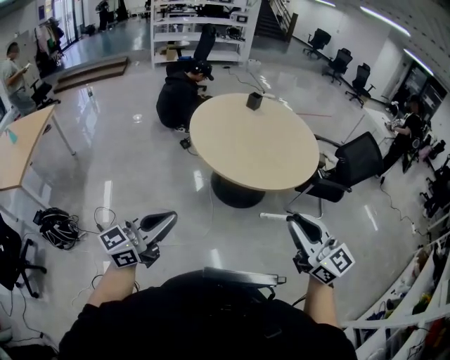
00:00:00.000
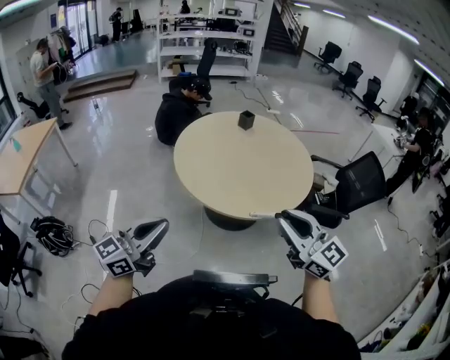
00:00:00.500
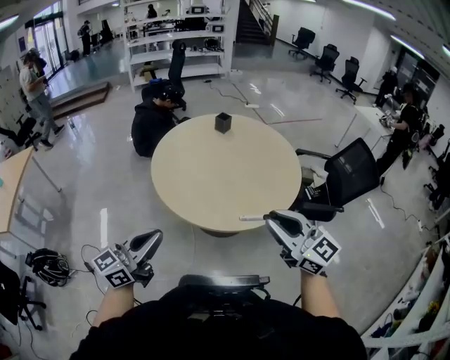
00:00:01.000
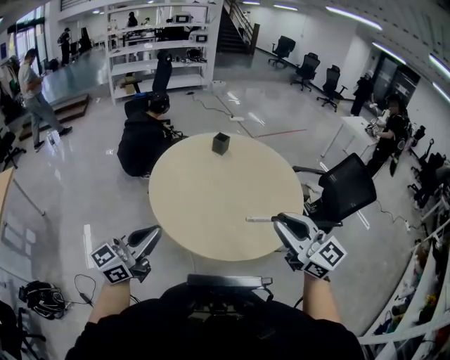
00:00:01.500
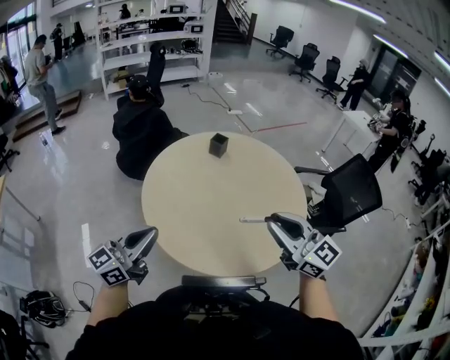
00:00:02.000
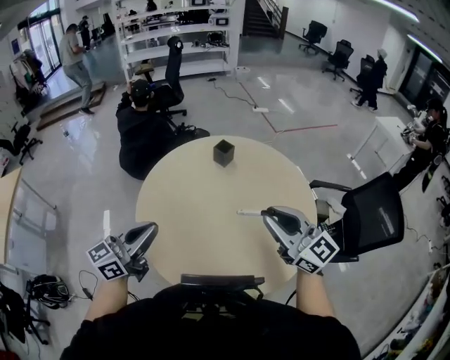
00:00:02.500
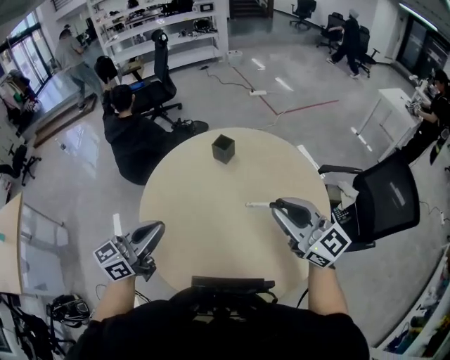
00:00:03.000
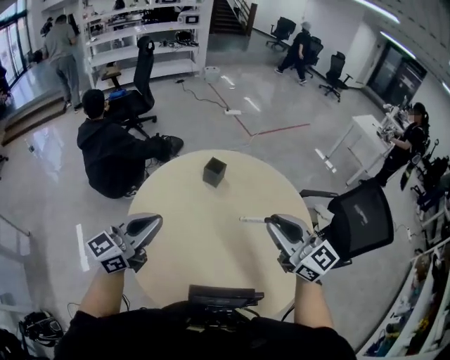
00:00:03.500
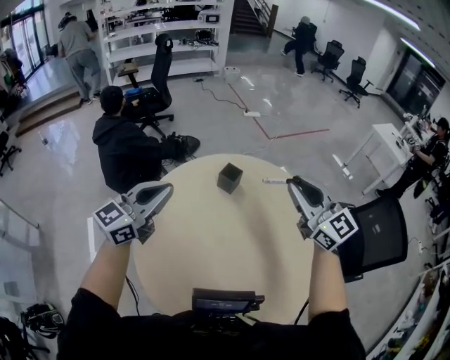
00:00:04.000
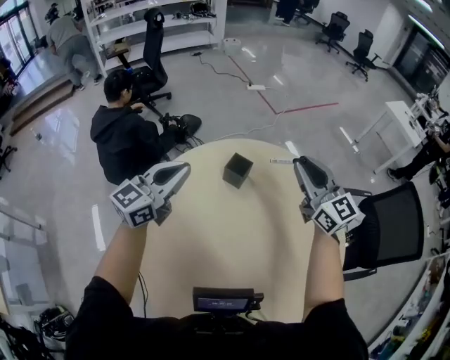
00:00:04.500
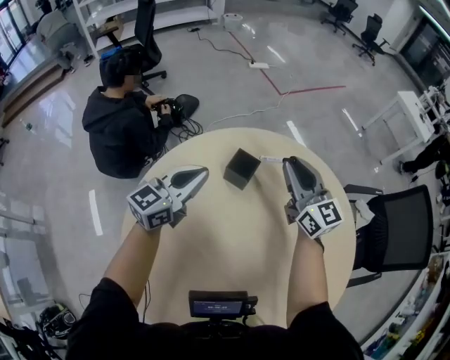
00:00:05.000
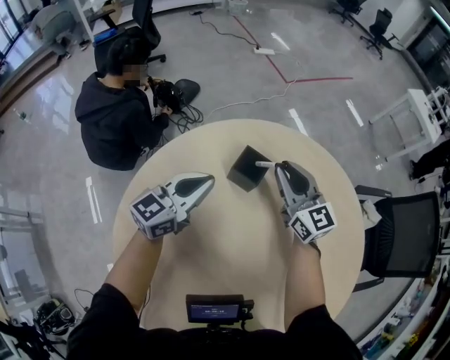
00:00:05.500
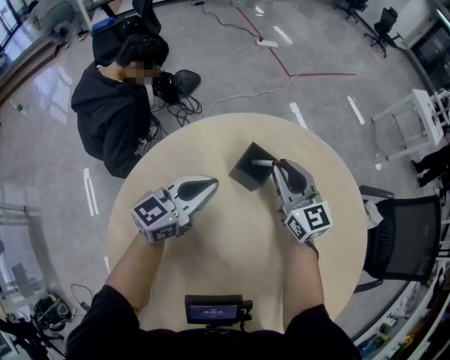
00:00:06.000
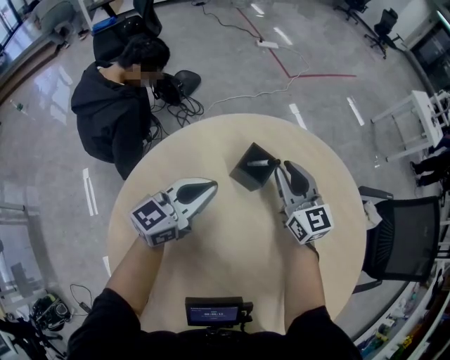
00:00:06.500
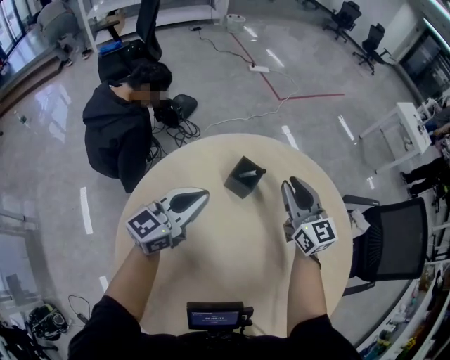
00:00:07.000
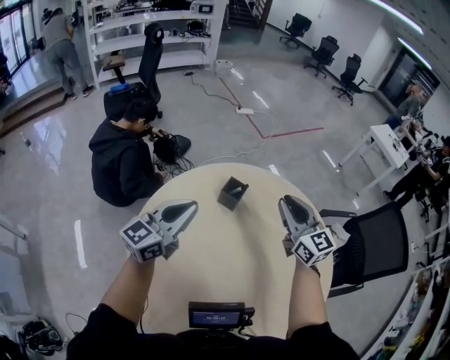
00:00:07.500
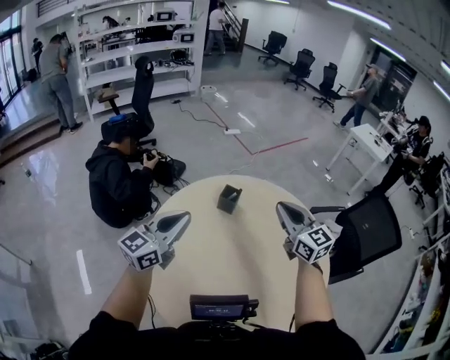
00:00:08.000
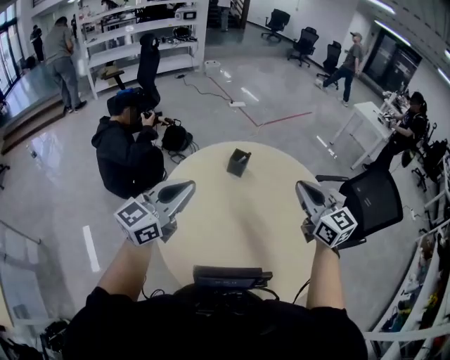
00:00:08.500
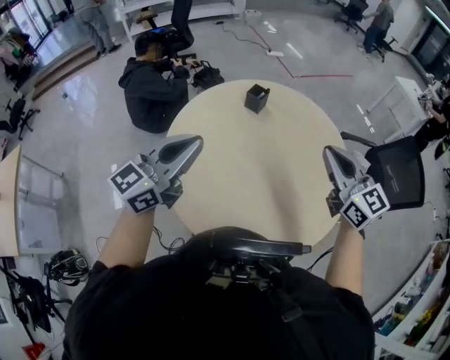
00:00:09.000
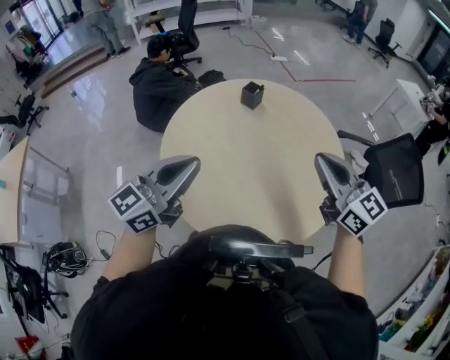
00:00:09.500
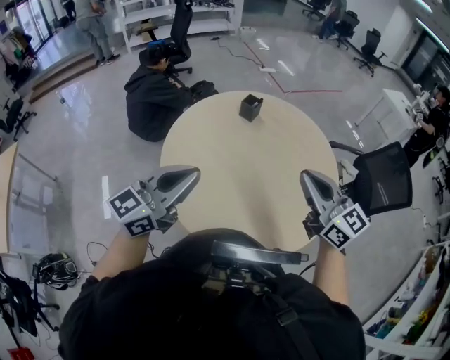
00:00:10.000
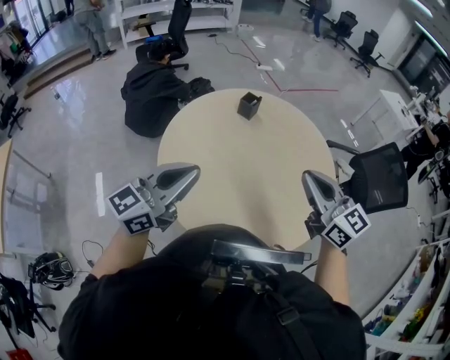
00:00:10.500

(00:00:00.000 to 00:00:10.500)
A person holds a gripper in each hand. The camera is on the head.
00:00:00.000 - 00:00:02.000: The two grippers travel together, forward, some 50 cm.
00:00:02.000 - 00:00:04.000: Both grippers are carried forward, some 40 cm.
00:00:04.000 - 00:00:06.500: The two grippers go about 40 cm downward and forward. The right gripper rotates roughly 20 degrees.
00:00:06.500 - 00:00:08.500: The left gripper is displaced upward and backward by some 40 cm. Meanwhile the right gripper travels backward and upward by roughly 50 cm.
00:00:08.500 - 00:00:10.500: The two grippers go some 20 cm backward.

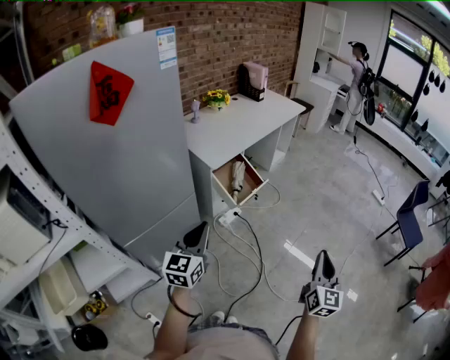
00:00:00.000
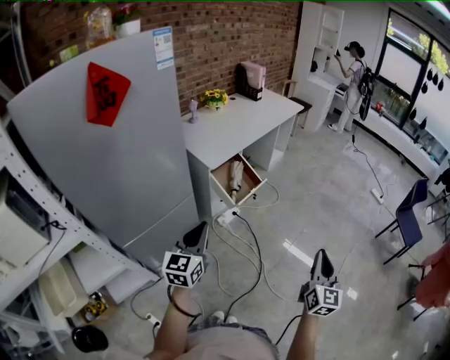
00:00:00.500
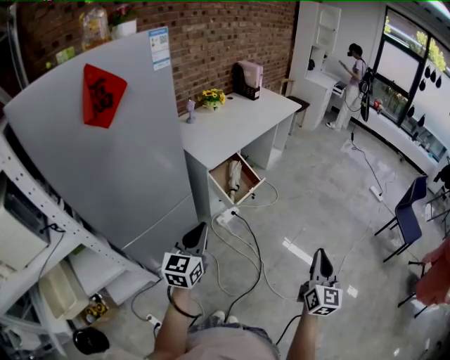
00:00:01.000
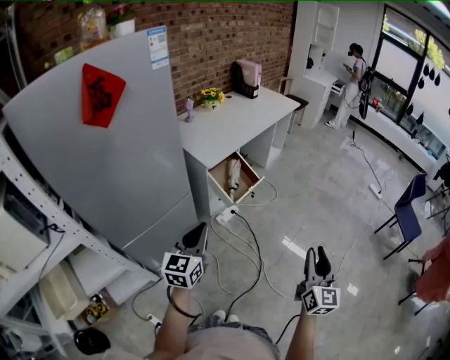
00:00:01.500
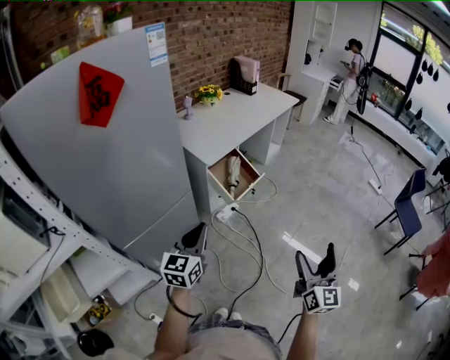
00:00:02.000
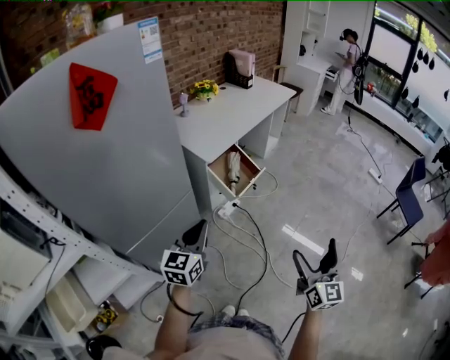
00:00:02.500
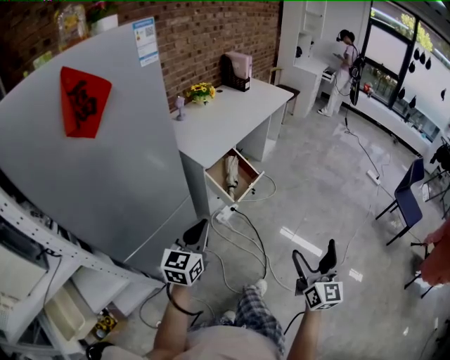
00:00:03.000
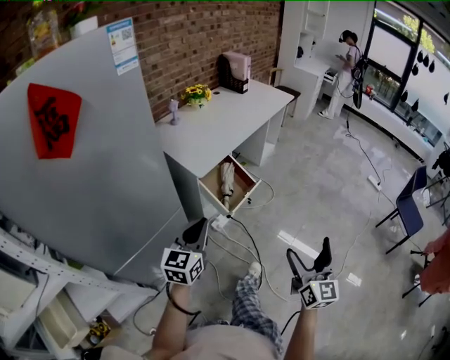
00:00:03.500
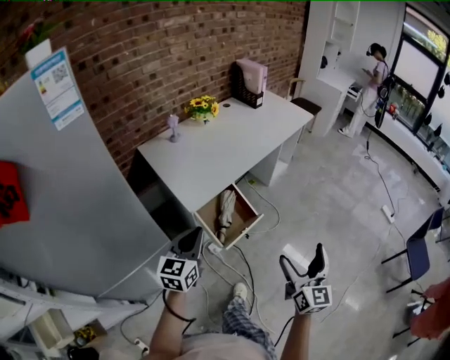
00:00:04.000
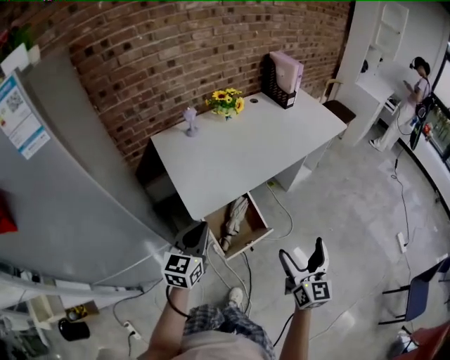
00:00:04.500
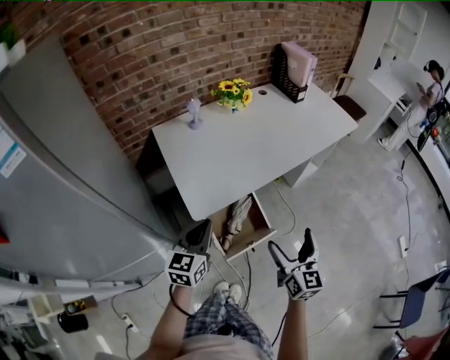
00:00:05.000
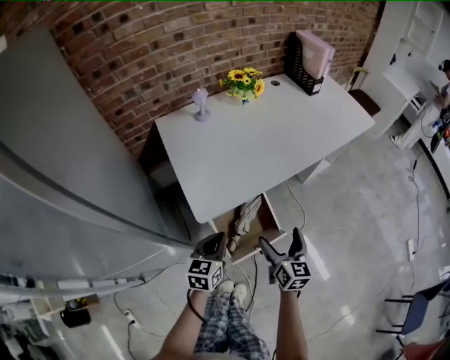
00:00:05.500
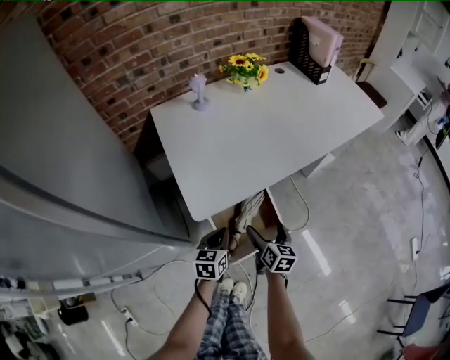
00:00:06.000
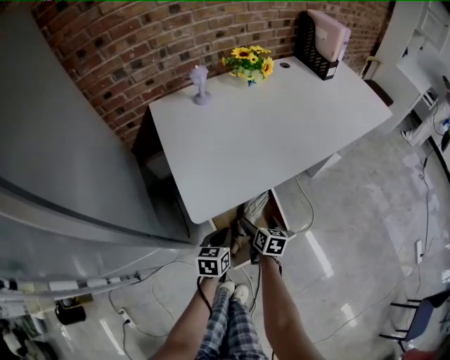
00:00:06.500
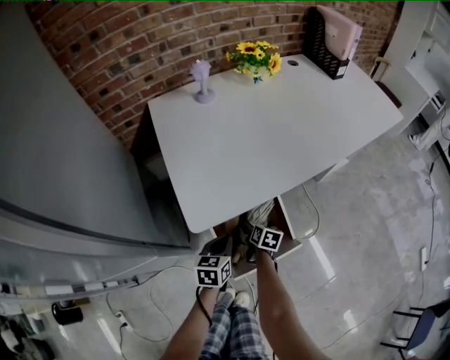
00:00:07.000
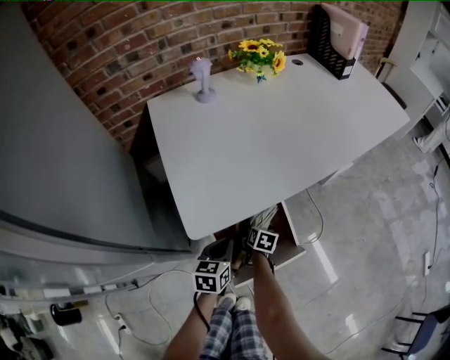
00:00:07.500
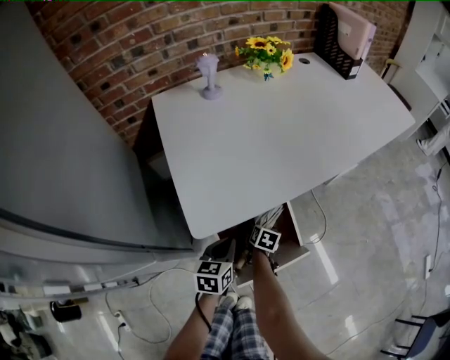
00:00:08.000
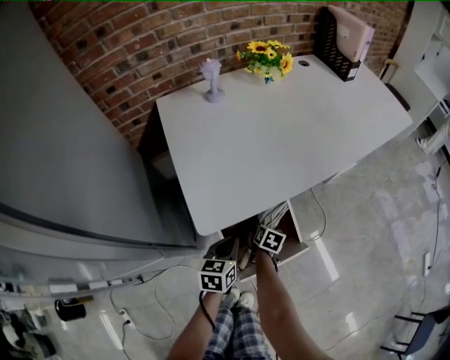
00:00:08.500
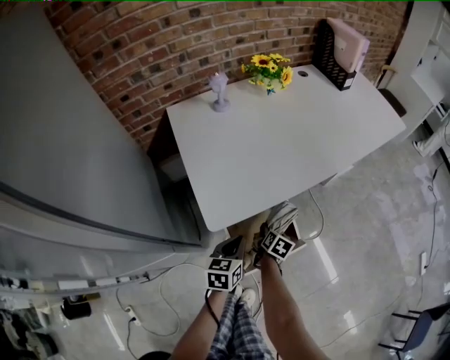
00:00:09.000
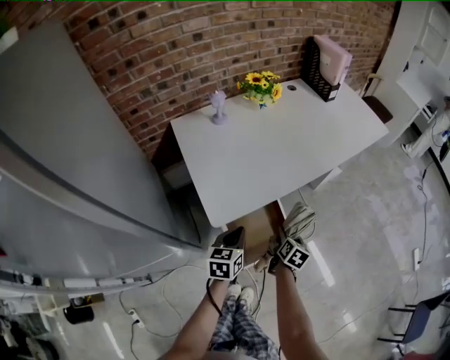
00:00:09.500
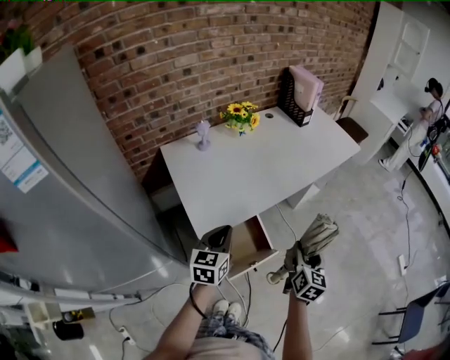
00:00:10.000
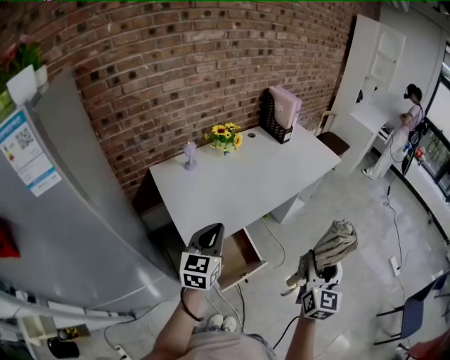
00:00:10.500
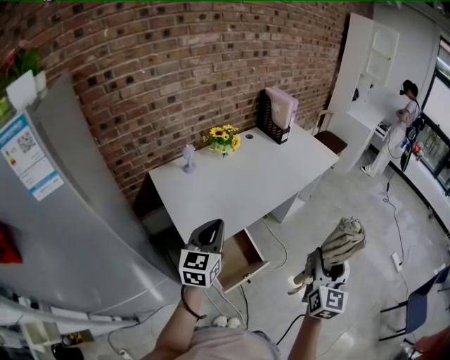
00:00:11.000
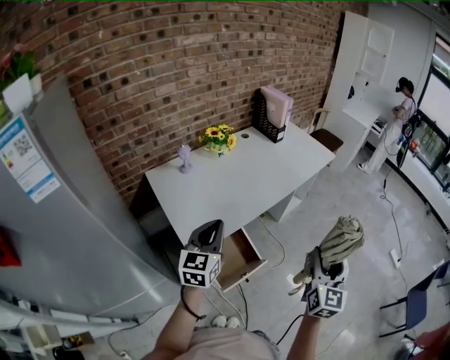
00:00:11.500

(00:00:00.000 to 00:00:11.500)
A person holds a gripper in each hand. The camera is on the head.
00:00:00.000 - 00:00:02.000: The right gripper changes place by about 5 cm, and opens.
00:00:02.000 - 00:00:04.000: Both grippers travel together forward, about 40 cm.
00:00:04.000 - 00:00:06.000: The left gripper travels downward and forward by some 40 cm, and rotates about 30 degrees. Meanwhile the right gripper is displaced forward and downward by some 50 cm, and turns by about 40 degrees.
00:00:06.000 - 00:00:07.500: The left gripper heads downward, covering about 10 cm; the right gripper is displaced downward and forward by about 25 cm, and swivels about 20 degrees.
00:00:07.500 - 00:00:09.500: The grippers both shift upward by some 25 cm. The right gripper closes up.
00:00:09.500 - 00:00:11.500: The right gripper heads upward and to the right, covering about 40 cm, and points its fingers roughly 40 degrees further upward; the left gripper is displaced upward by some 25 cm, and rotates some 30 degrees.

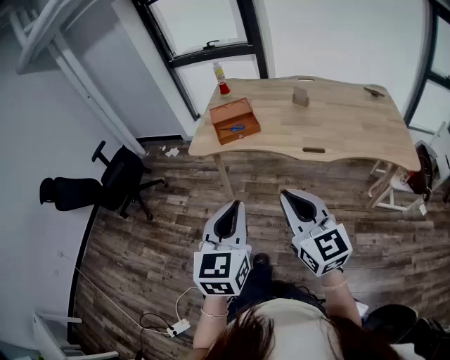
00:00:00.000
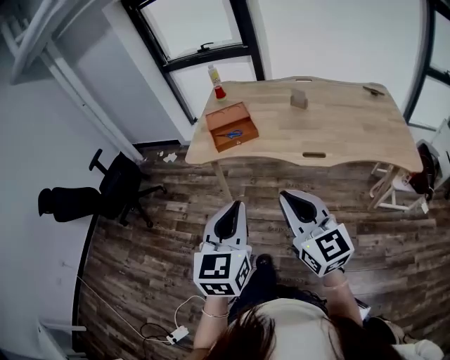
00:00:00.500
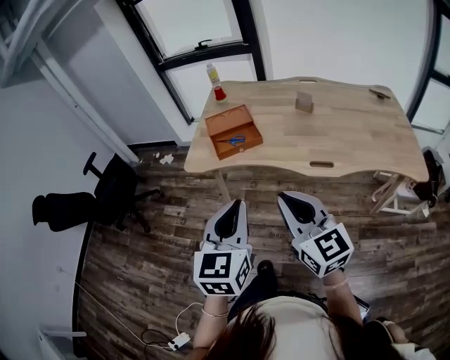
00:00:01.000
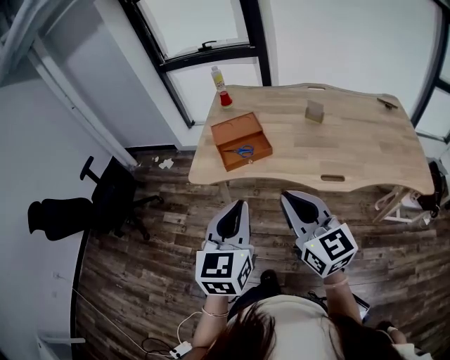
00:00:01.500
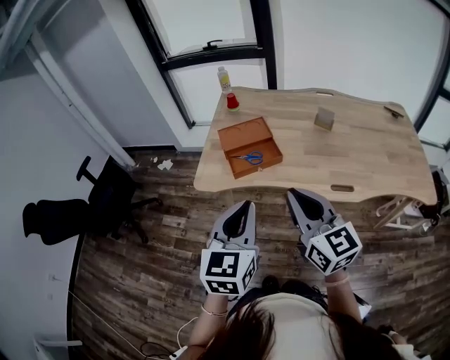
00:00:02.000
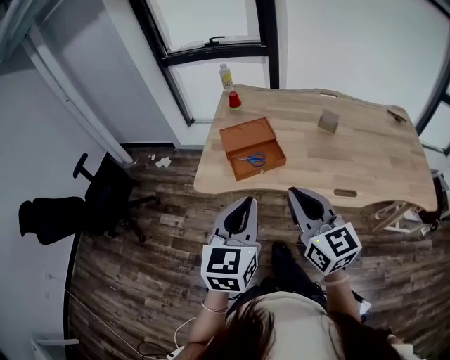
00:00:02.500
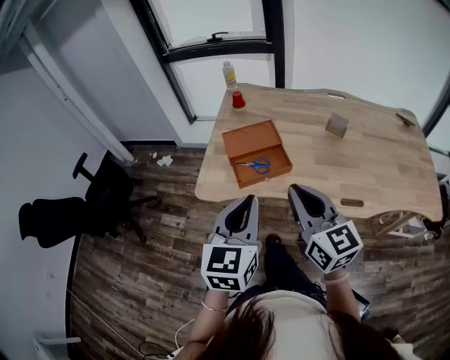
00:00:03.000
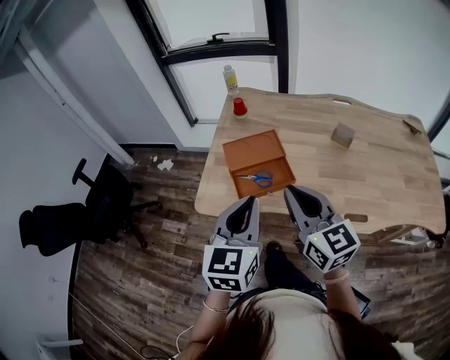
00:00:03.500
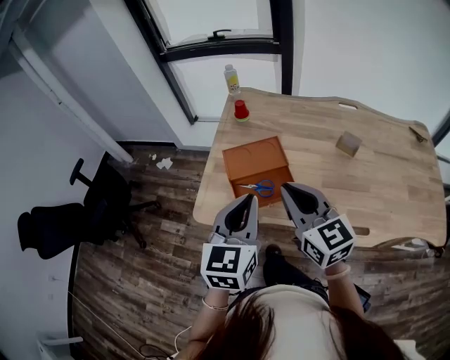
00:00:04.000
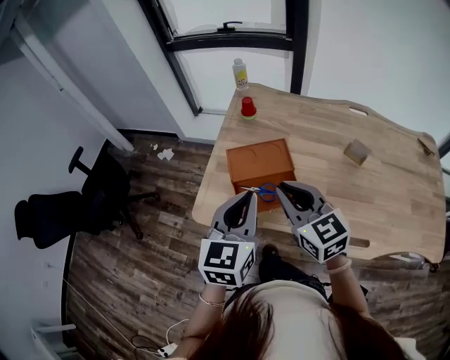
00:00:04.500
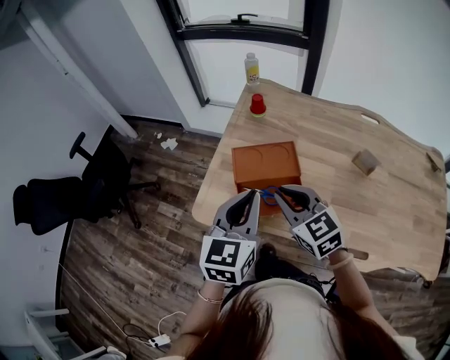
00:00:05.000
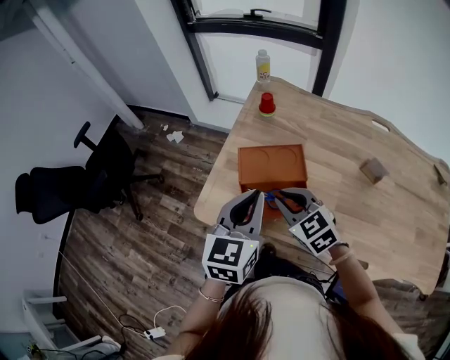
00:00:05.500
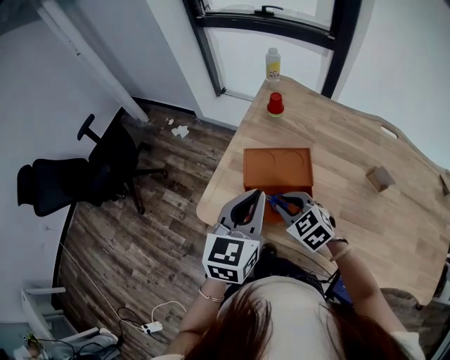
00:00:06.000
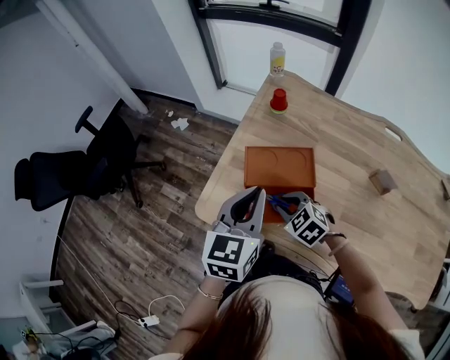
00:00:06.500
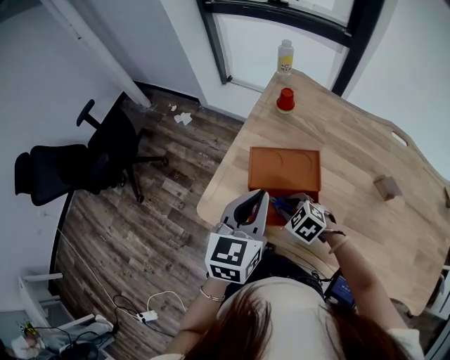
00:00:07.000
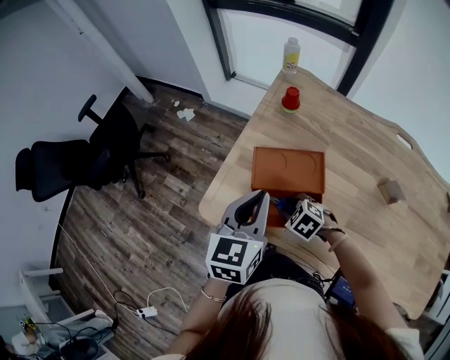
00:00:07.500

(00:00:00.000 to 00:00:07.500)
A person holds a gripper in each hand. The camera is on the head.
00:00:00.000 - 00:00:02.000: Both grippers travel together forward, some 25 cm.
00:00:02.000 - 00:00:04.000: The grippers both shift forward by approximately 25 cm.
00:00:04.000 - 00:00:05.500: The right gripper goes about 15 cm downward and forward, and changes its angle by some 40 degrees, while the left gripper travels forward by some 10 cm.
00:00:05.500 - 00:00:07.500: The left gripper is displaced forward by some 5 cm. The right gripper travels downward by about 15 cm, and angles its fingers downward, by roughly 30 degrees.
